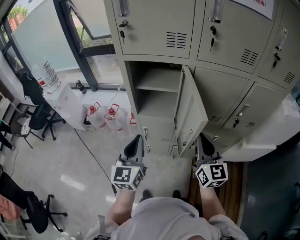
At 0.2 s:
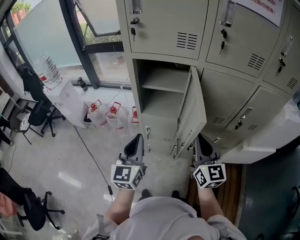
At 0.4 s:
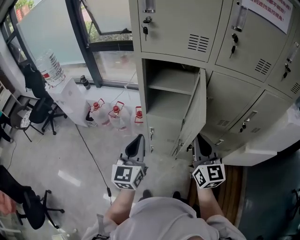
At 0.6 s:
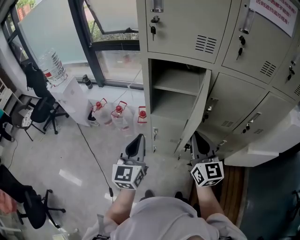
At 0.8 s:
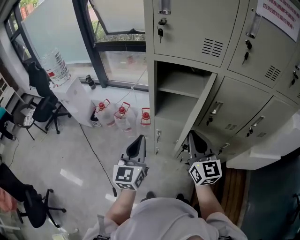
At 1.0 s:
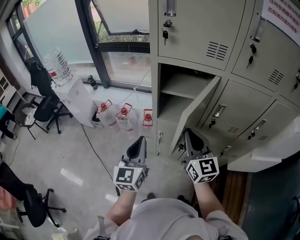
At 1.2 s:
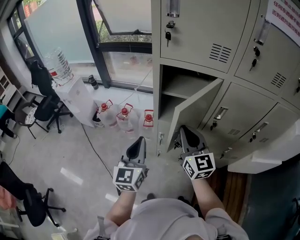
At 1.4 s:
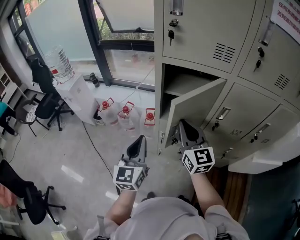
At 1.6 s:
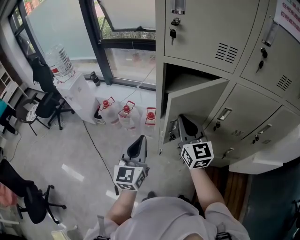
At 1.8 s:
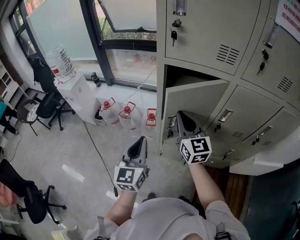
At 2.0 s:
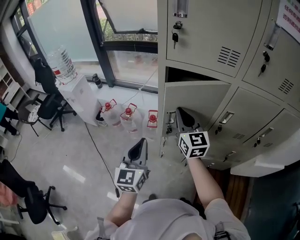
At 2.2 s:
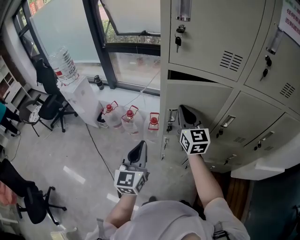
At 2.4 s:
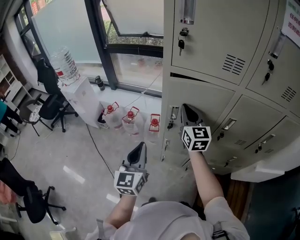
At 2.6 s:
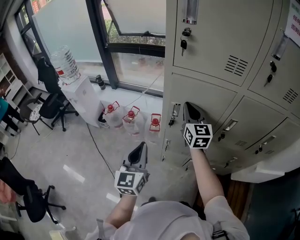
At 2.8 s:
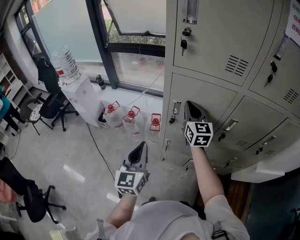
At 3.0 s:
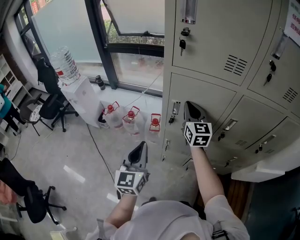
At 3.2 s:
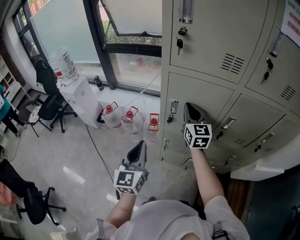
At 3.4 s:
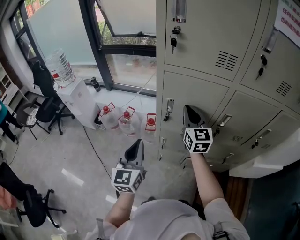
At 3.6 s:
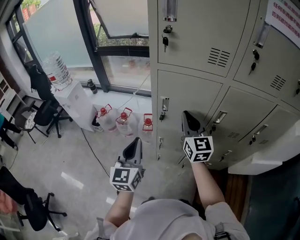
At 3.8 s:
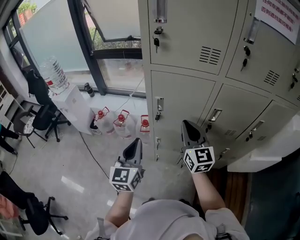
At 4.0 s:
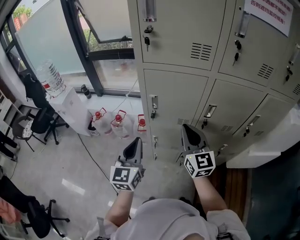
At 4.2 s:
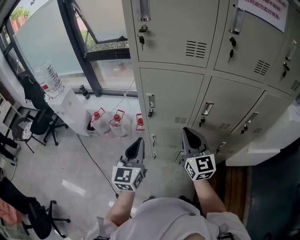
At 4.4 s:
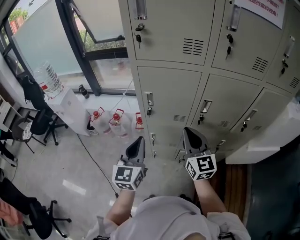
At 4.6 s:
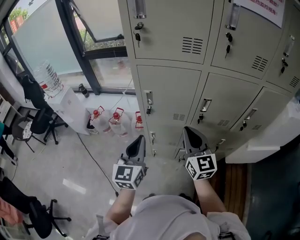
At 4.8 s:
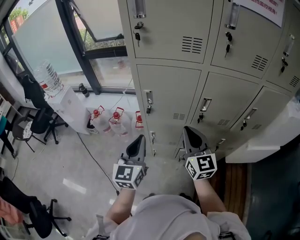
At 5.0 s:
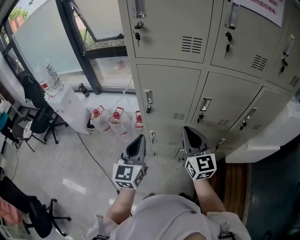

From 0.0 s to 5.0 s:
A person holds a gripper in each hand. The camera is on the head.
From 0.0 s to 1.6 s: The right gripper goes roughly 25 cm to the left and forward. Meanwhile the left gripper is displaced to the left by about 10 cm.
From 1.6 s to 3.4 s: The right gripper moves forward, some 10 cm.
From 3.4 s to 5.0 s: The right gripper shifts approximately 20 cm backward and to the right; the left gripper moves to the right, approximately 10 cm.

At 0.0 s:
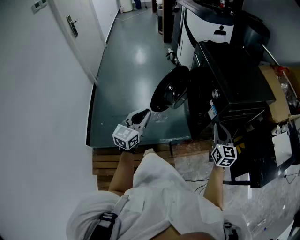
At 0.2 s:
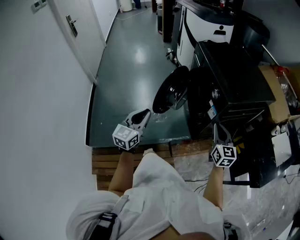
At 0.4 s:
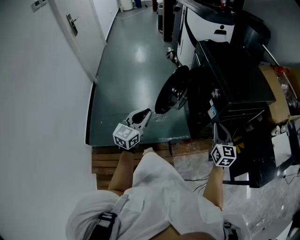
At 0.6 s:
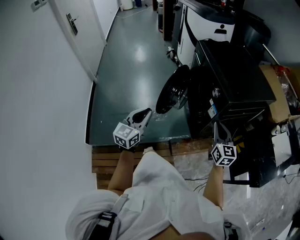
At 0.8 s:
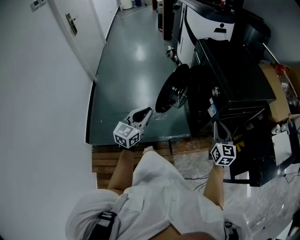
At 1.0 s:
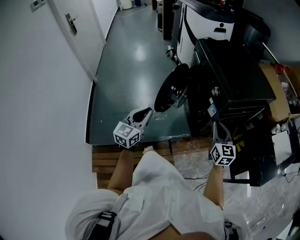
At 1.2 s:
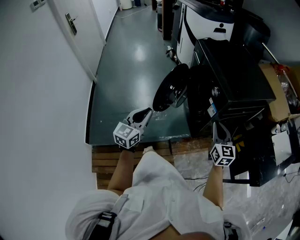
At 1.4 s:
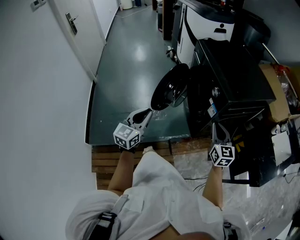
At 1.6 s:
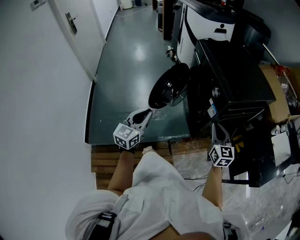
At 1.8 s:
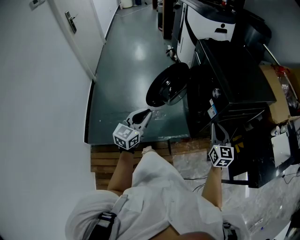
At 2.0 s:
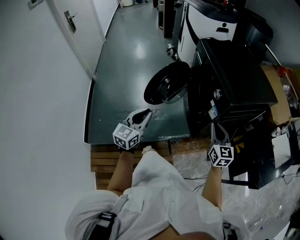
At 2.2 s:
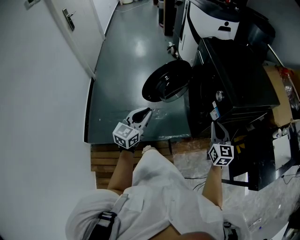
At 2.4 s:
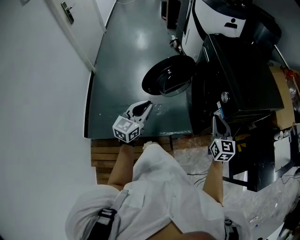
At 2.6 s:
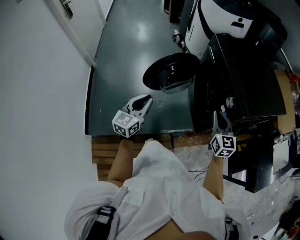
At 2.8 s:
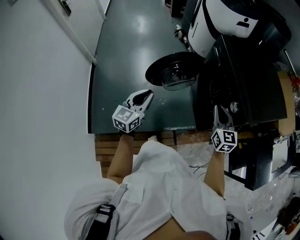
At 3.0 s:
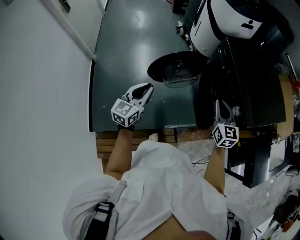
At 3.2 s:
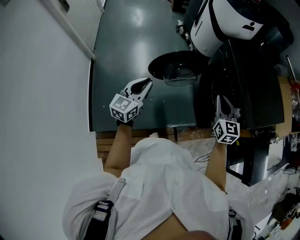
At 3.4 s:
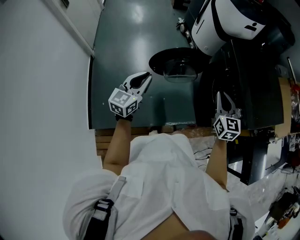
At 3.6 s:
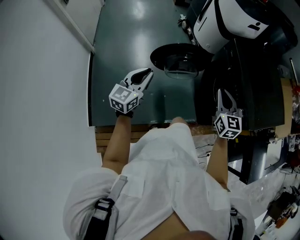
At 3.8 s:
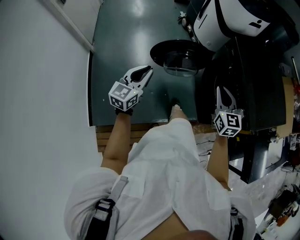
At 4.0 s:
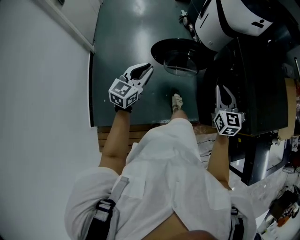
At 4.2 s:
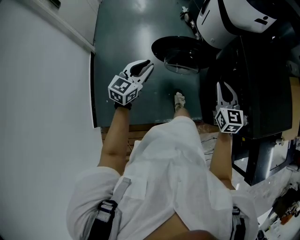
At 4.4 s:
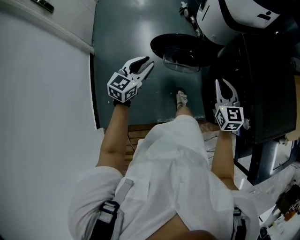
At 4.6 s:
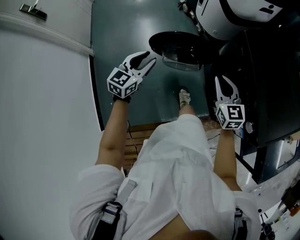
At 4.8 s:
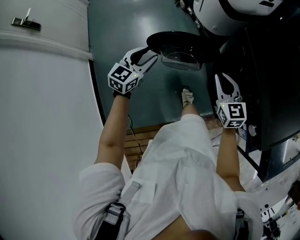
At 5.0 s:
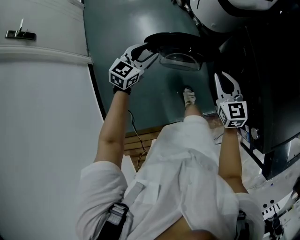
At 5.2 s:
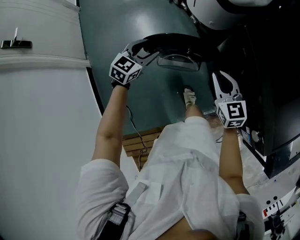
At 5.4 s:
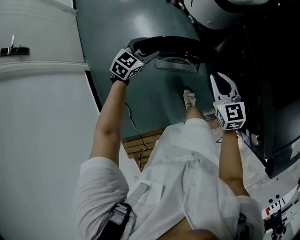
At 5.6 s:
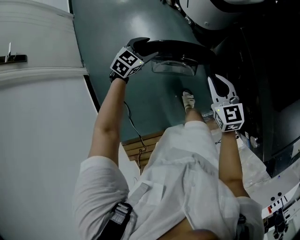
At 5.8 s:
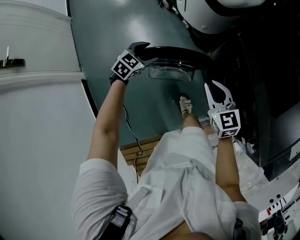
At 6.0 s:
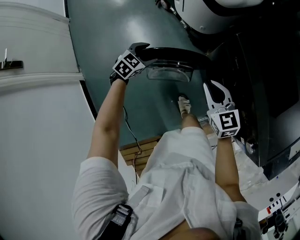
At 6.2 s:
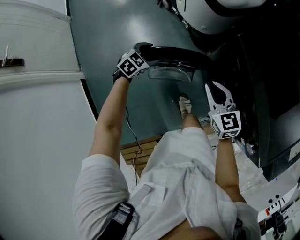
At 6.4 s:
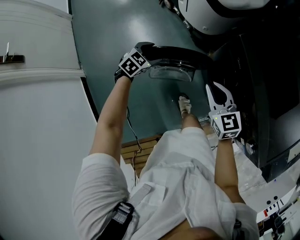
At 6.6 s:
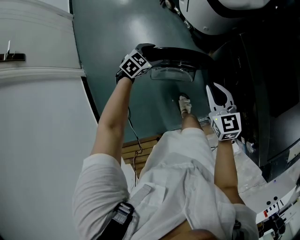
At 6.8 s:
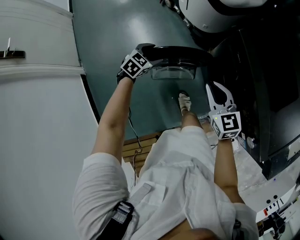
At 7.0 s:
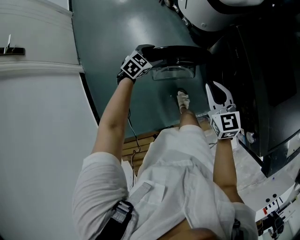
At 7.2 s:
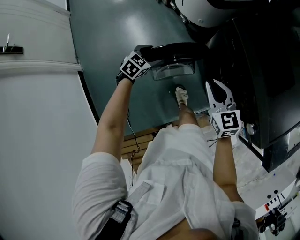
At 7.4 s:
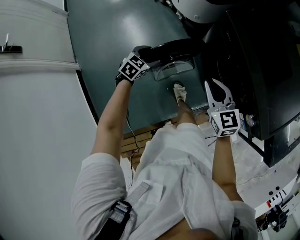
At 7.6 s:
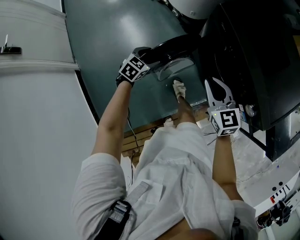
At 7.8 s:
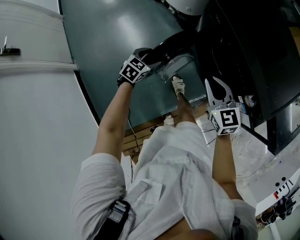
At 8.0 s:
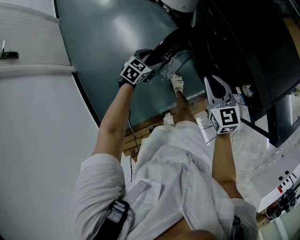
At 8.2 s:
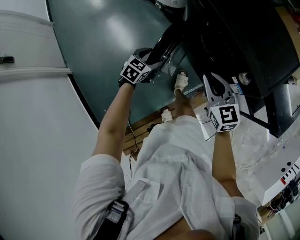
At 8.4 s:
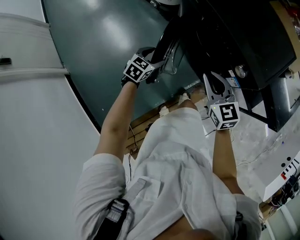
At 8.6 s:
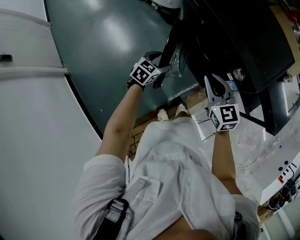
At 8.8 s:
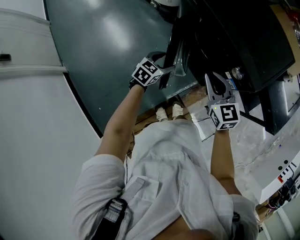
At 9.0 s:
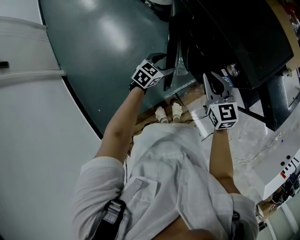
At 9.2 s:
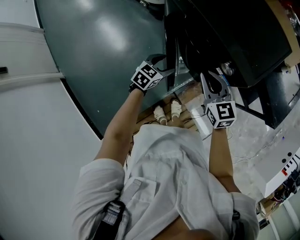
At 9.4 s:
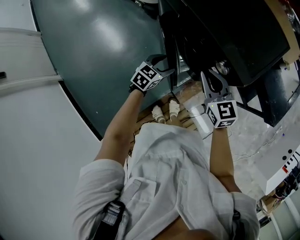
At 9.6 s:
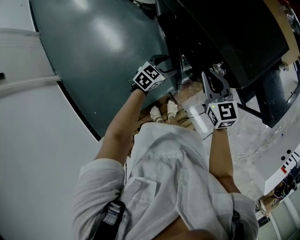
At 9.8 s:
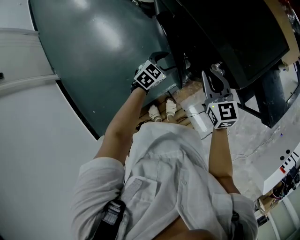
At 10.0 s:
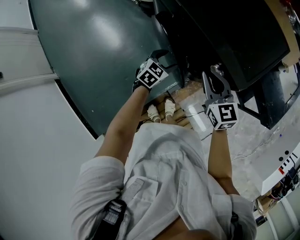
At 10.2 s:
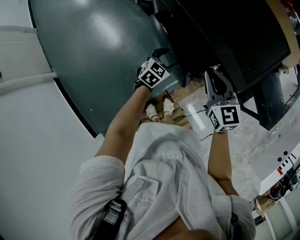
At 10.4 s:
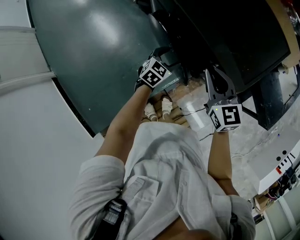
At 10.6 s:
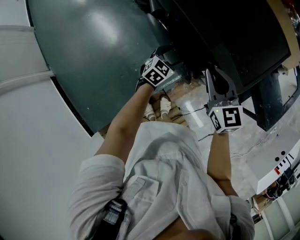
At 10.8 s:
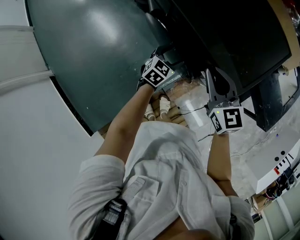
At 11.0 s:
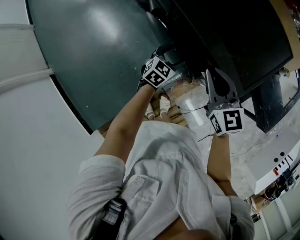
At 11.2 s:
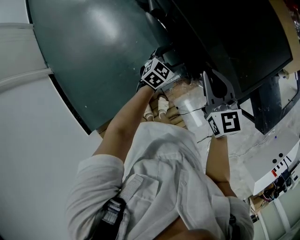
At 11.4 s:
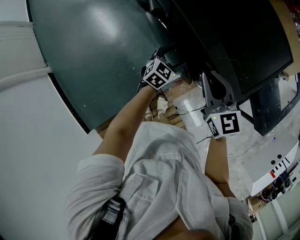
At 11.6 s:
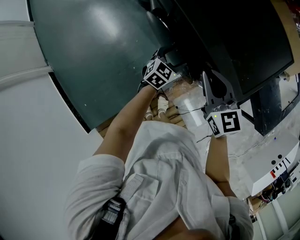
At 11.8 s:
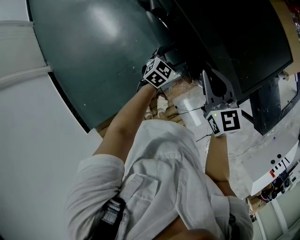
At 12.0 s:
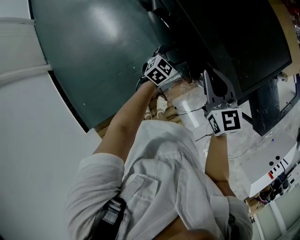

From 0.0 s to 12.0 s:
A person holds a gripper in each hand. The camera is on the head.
From 0.0 s to 1.6 s: The grippers move only a little.
From 1.6 s to 3.0 s: Both grippers travel together forward and to the left, some 25 cm.
From 3.0 s to 4.4 s: The left gripper shifts about 20 cm forward. Meanwhile the right gripper moves forward and to the left, approximately 20 cm.
From 4.4 s to 6.0 s: The right gripper travels forward and downward by roughly 20 cm. The left gripper travels forward and downward by about 35 cm, points its fingers some 30 degrees further downward, and opens up.
From 6.0 s to 7.6 s: Both grippers travel together backward and to the right, about 15 cm.
From 7.6 s to 9.0 s: The left gripper goes some 25 cm to the right, while the right gripper travels to the right and backward by approximately 15 cm.
From 9.0 s to 10.4 s: Both grippers move to the right and forward, approximately 15 cm.
From 10.4 s to 12.0 s: The grippers stay close to where they were, moving slightly.

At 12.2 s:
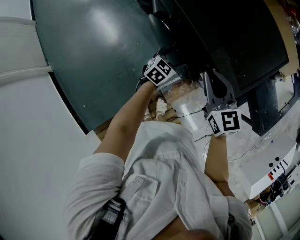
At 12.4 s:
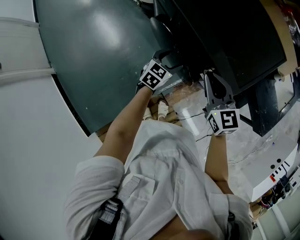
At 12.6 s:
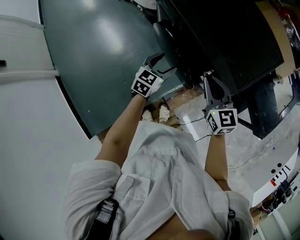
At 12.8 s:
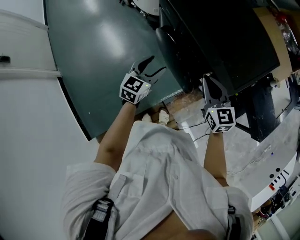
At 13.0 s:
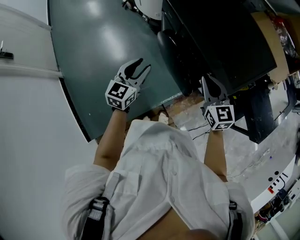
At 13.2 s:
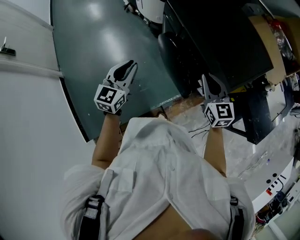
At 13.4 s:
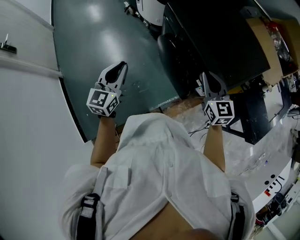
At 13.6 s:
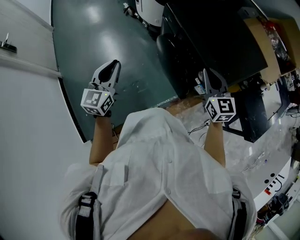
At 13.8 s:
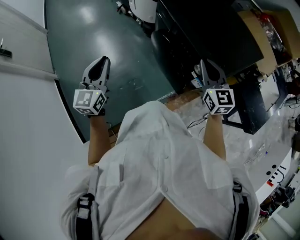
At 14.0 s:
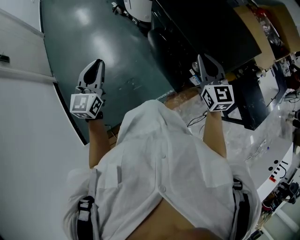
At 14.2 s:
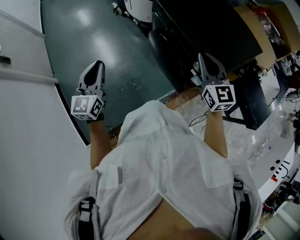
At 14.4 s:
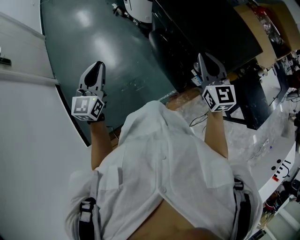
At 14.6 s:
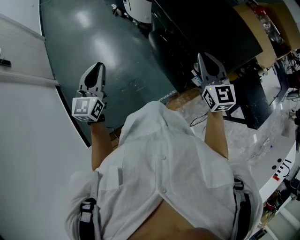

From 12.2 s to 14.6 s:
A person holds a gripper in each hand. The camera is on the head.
From 12.2 s to 13.4 s: The right gripper shifts approximately 5 cm upward; the left gripper heads upward, to the left and backward, covering some 40 cm, rotates about 40 degrees, and closes its fingers.
From 13.4 s to 14.6 s: The left gripper heads to the left, covering roughly 5 cm. Meanwhile the right gripper travels upward by some 5 cm.

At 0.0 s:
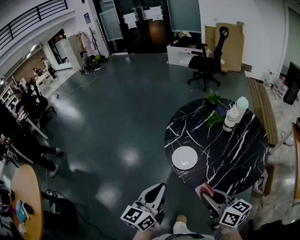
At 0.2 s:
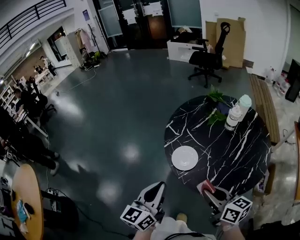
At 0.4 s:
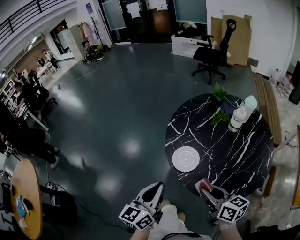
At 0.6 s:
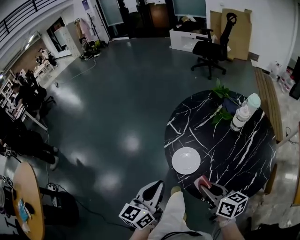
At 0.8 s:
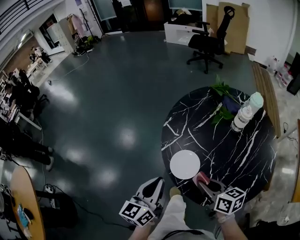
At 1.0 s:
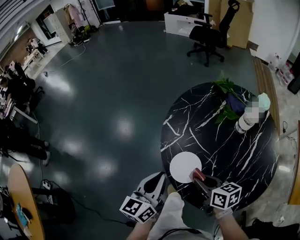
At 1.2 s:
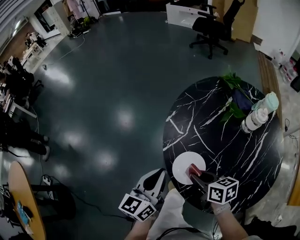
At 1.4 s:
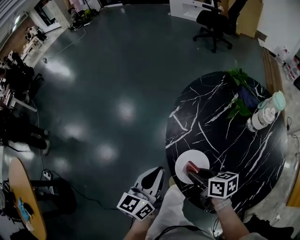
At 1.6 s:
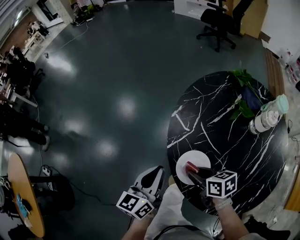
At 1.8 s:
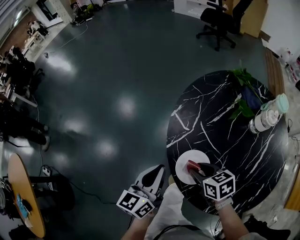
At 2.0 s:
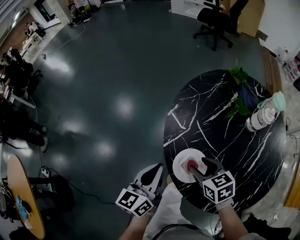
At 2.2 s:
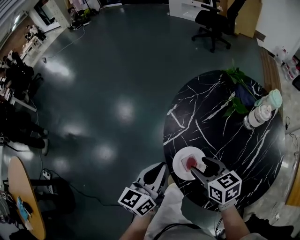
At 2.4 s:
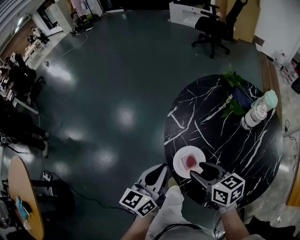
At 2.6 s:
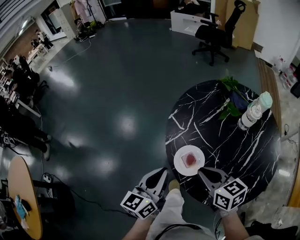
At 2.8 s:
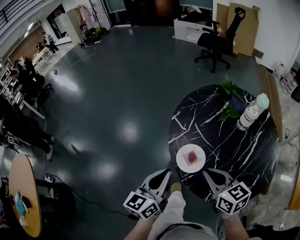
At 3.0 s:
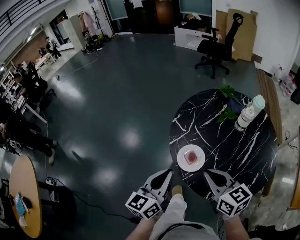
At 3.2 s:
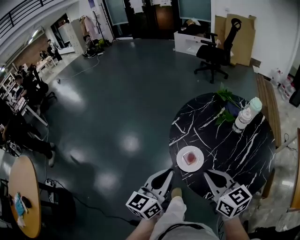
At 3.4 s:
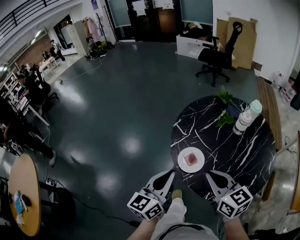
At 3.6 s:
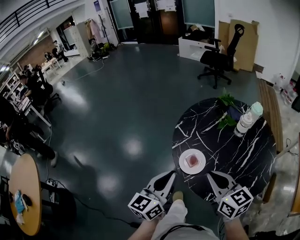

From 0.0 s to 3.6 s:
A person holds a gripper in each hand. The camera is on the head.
From 0.0 s to 1.8 s: Both grippers travel together forward and downward, about 30 cm. The right gripper points its fingers some 40 degrees further downward.
From 1.8 s to 3.6 s: The right gripper goes roughly 25 cm upward and backward, tips its fingers upward by about 30 degrees, and closes; the left gripper is displaced backward and upward by about 20 cm.
